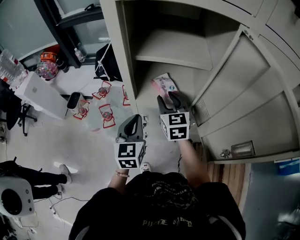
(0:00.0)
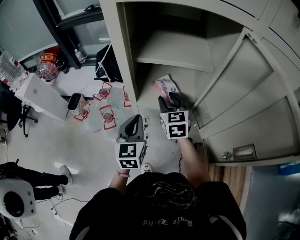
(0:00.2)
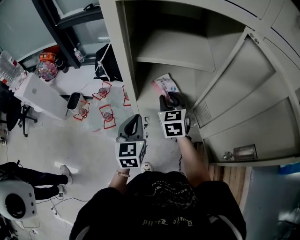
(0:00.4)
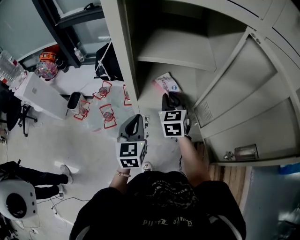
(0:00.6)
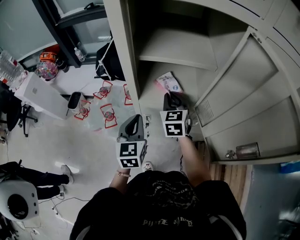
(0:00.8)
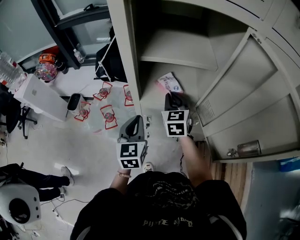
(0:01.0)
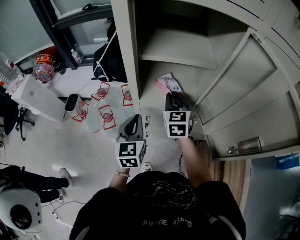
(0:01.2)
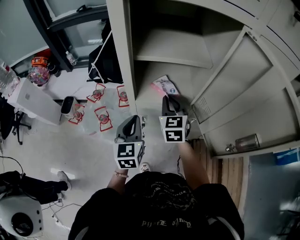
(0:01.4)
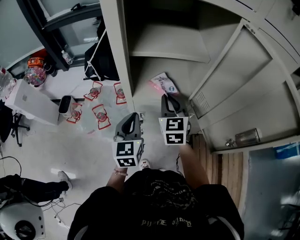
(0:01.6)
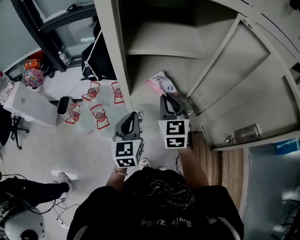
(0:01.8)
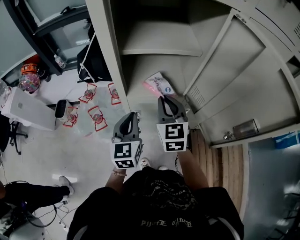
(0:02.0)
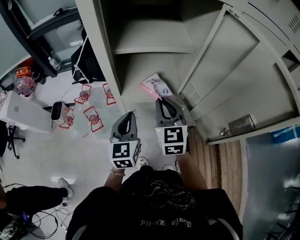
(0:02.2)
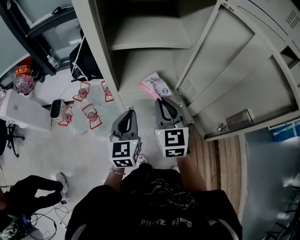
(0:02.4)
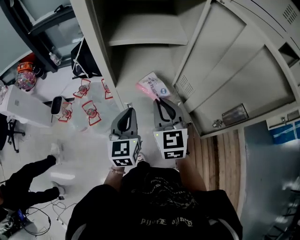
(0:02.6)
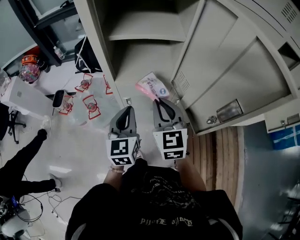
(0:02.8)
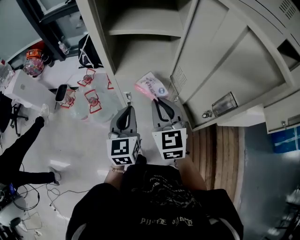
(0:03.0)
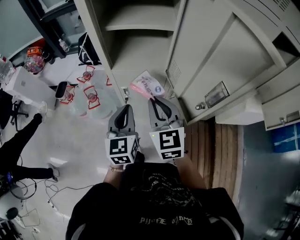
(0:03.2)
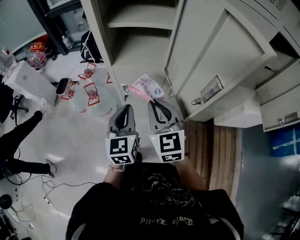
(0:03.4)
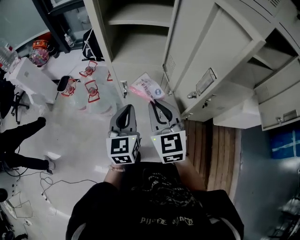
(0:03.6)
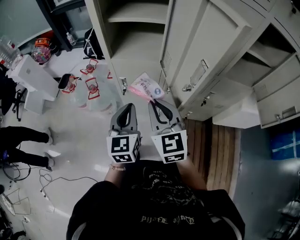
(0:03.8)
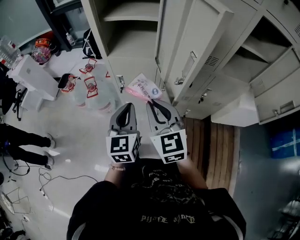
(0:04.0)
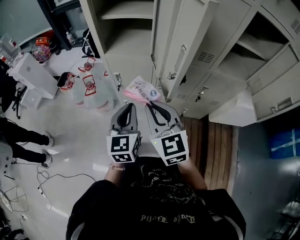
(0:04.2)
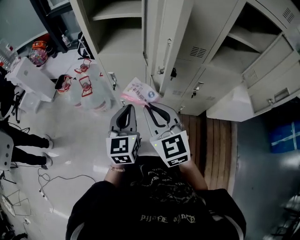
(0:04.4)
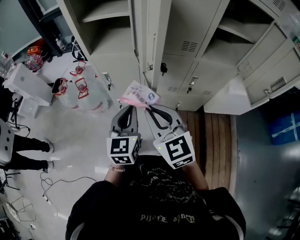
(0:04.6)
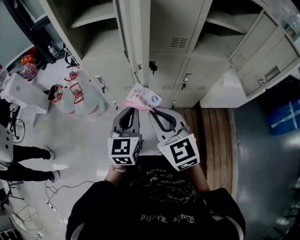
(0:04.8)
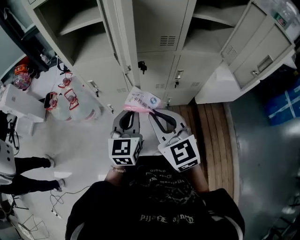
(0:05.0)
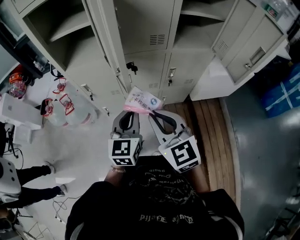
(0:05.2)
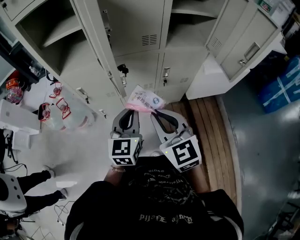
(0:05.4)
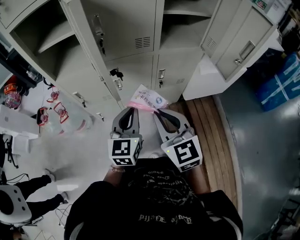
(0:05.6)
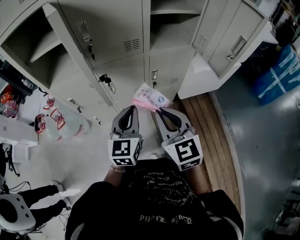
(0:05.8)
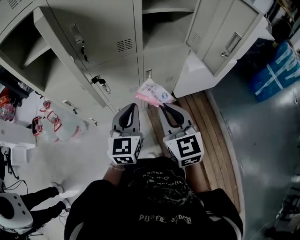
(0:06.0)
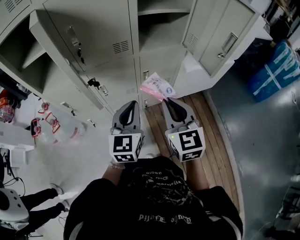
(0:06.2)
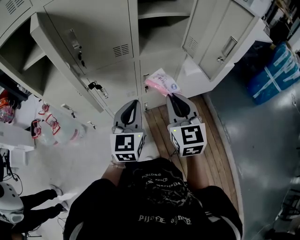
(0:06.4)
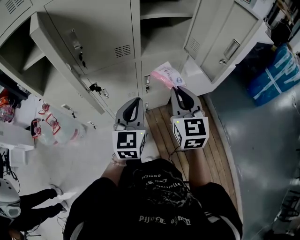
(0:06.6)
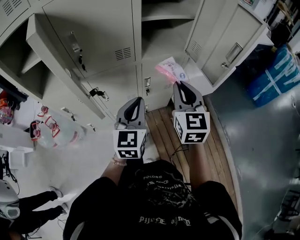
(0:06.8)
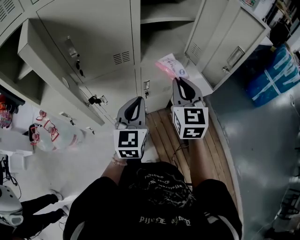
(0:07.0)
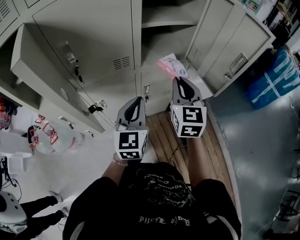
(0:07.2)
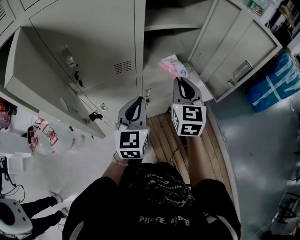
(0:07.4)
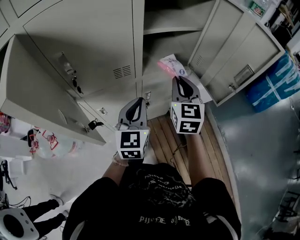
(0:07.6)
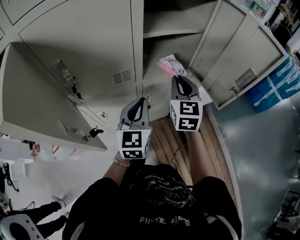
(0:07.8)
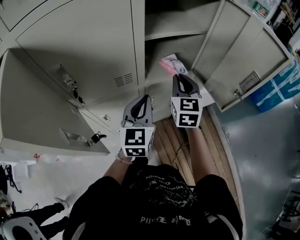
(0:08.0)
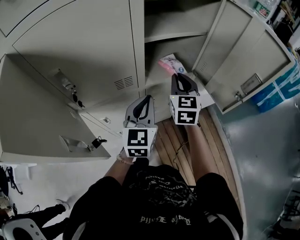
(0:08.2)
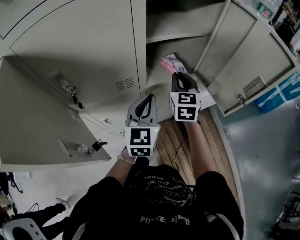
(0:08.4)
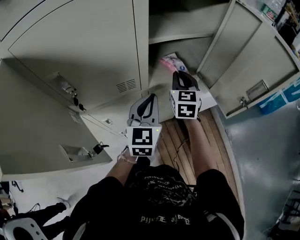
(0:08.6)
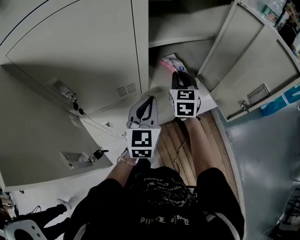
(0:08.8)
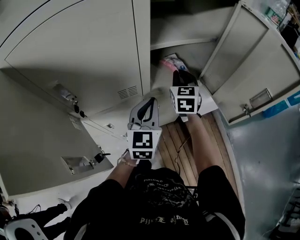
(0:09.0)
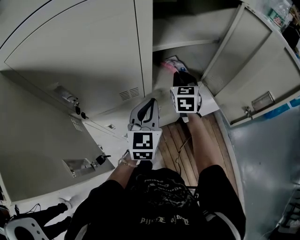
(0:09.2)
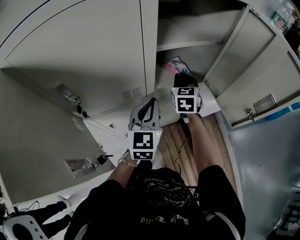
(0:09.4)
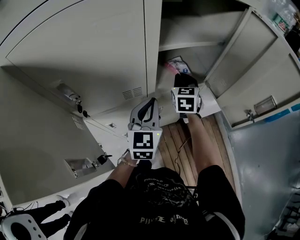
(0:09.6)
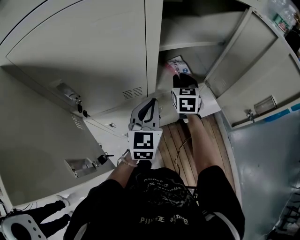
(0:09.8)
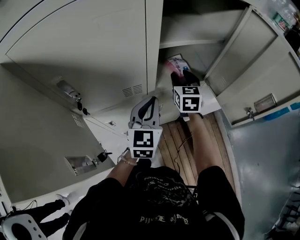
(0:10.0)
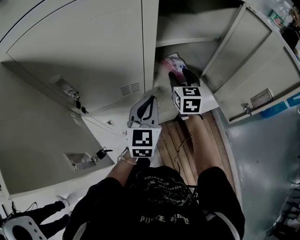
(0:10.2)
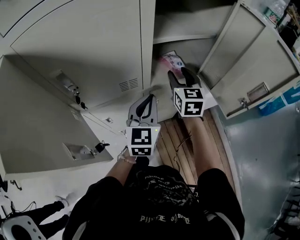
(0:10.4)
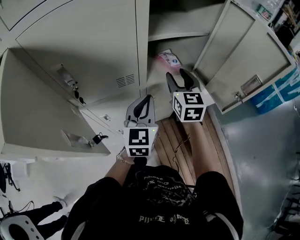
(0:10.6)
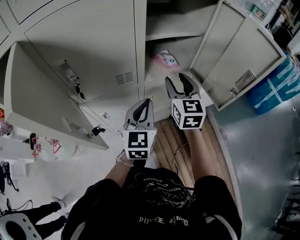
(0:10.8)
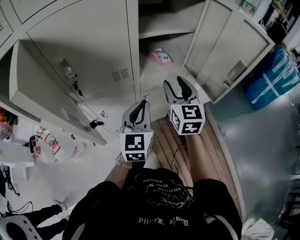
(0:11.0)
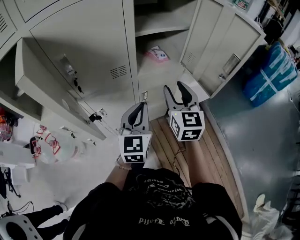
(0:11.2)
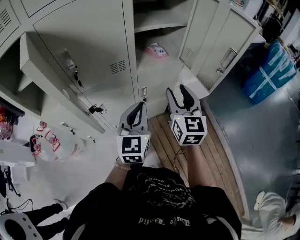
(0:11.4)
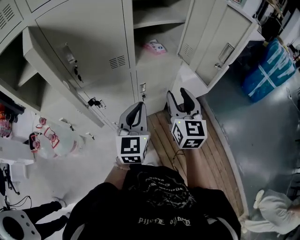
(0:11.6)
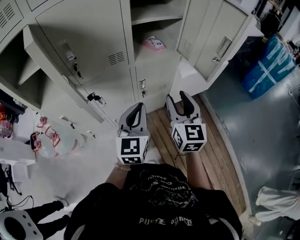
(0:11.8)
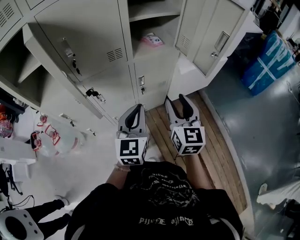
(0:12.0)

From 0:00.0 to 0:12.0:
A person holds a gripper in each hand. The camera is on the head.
From 0:00.0 to 0:01.6: The right gripper closes.
From 0:01.6 to 0:03.0: The left gripper goes about 10 cm backward and to the right; the right gripper is displaced backward by roughly 15 cm.
From 0:03.0 to 0:04.4: The left gripper travels backward and to the right by roughly 20 cm. Meanwhile the right gripper is displaced backward by some 20 cm.
From 0:04.4 to 0:06.0: The right gripper ends up about 25 cm from where it was, and turns by about 30 degrees; the left gripper moves some 20 cm, and swivels some 30 degrees.
From 0:06.0 to 0:07.6: The right gripper goes some 25 cm forward, and turns by approximately 20 degrees; the left gripper is displaced forward by roughly 15 cm.
From 0:07.6 to 0:09.0: The right gripper heads forward, covering approximately 15 cm. The left gripper shifts roughly 10 cm forward.
From 0:09.0 to 0:10.4: The right gripper shifts by roughly 5 cm, and opens its fingers.
From 0:10.4 to 0:12.0: Both grippers move backward, roughly 25 cm.

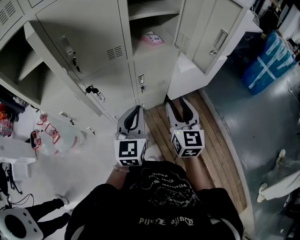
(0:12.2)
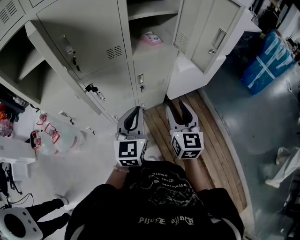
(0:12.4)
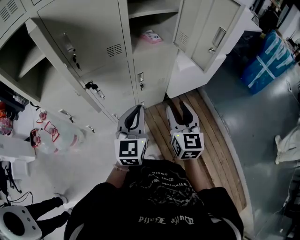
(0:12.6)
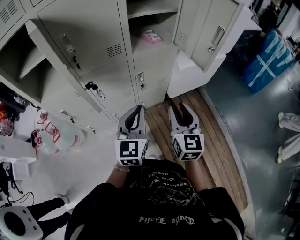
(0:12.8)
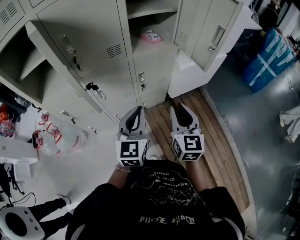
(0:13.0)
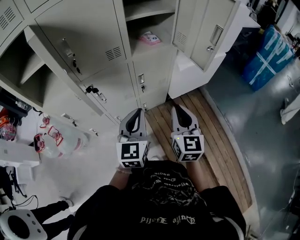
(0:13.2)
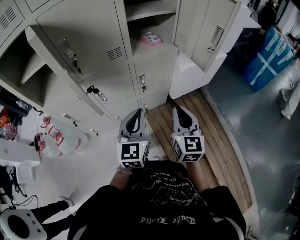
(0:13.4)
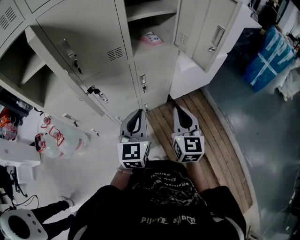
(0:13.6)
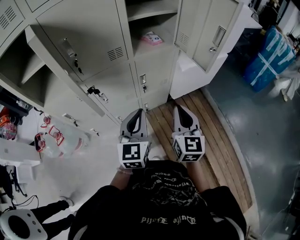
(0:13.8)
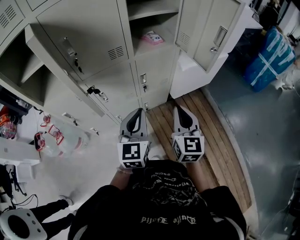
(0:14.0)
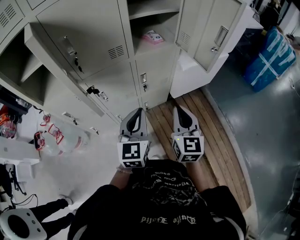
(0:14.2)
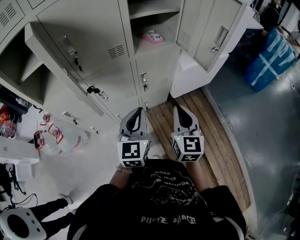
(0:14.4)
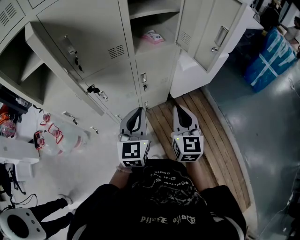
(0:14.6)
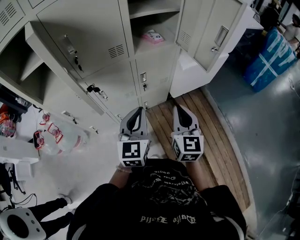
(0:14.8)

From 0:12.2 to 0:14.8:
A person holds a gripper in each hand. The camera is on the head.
From 0:12.2 to 0:13.4: The right gripper closes.
From 0:13.4 to 0:14.8: The two grippers keep their place.

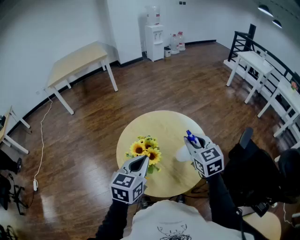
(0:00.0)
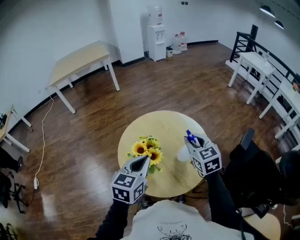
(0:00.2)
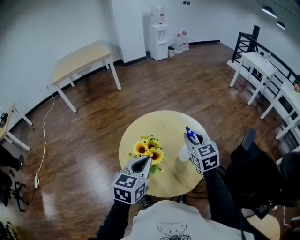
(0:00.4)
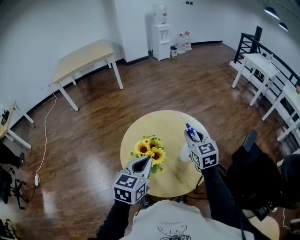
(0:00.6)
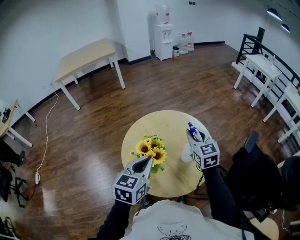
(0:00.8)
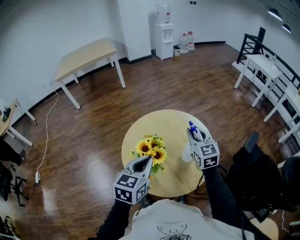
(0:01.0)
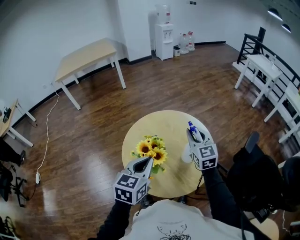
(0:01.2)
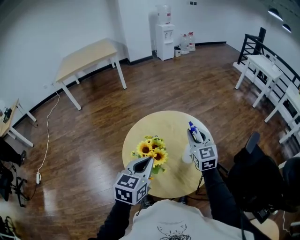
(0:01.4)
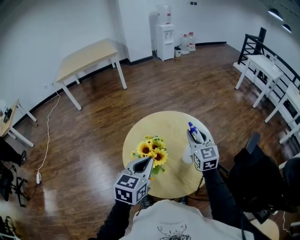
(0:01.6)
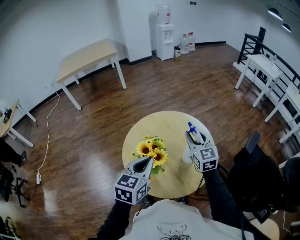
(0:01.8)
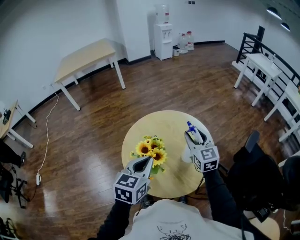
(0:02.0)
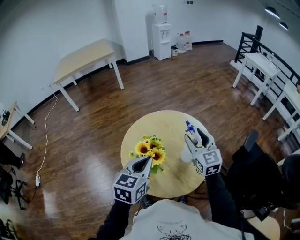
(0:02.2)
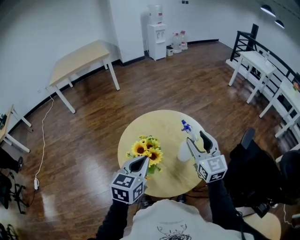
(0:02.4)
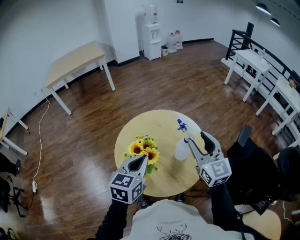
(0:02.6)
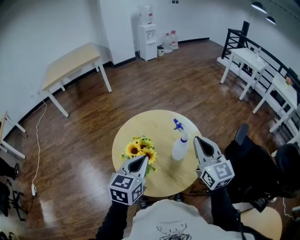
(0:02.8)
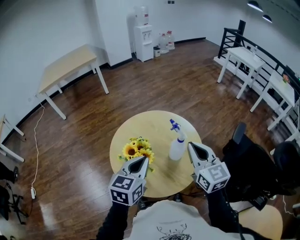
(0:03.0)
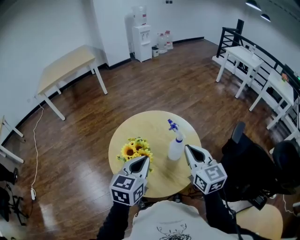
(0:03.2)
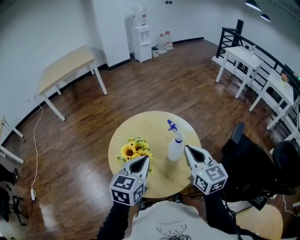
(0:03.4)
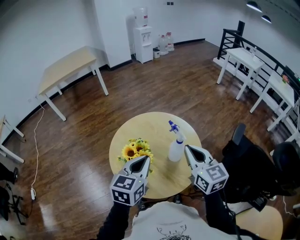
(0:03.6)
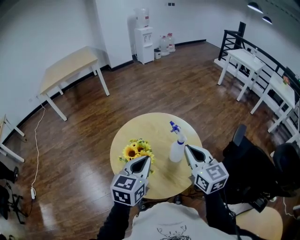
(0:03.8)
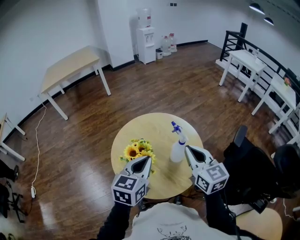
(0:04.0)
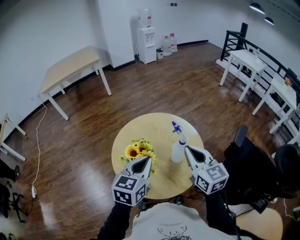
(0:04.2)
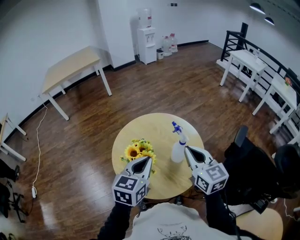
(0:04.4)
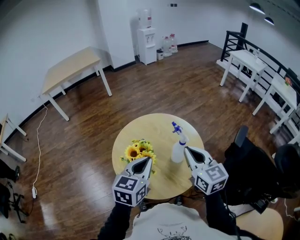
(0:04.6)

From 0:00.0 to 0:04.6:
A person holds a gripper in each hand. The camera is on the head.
From 0:00.0 to 0:01.6: The right gripper shifts about 5 cm forward.
From 0:01.6 to 0:03.0: The right gripper heads backward and upward, covering some 15 cm, and opens, then closes once more.
From 0:03.0 to 0:04.6: The grippers move only a little.

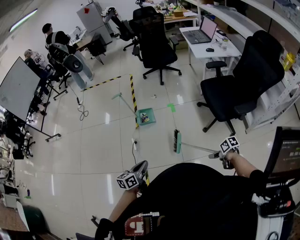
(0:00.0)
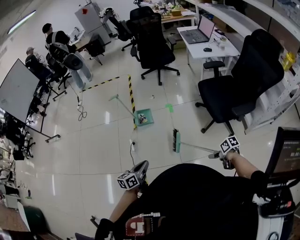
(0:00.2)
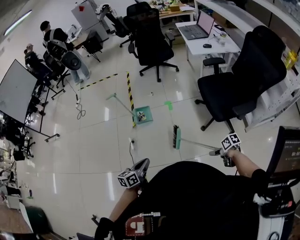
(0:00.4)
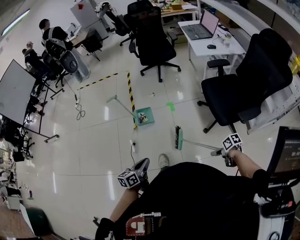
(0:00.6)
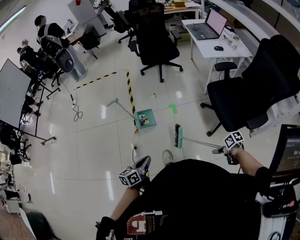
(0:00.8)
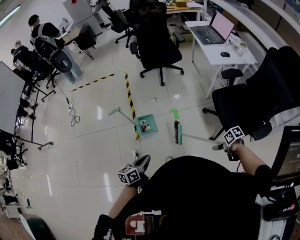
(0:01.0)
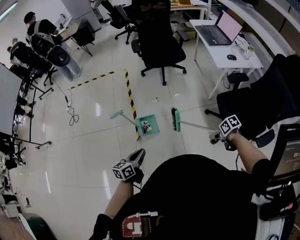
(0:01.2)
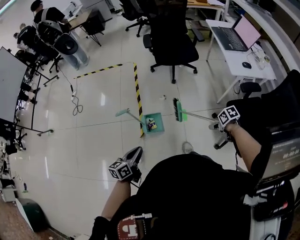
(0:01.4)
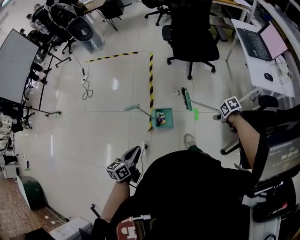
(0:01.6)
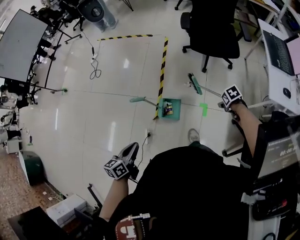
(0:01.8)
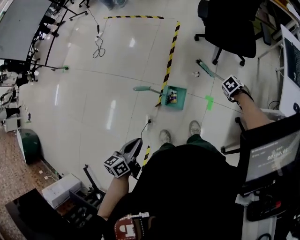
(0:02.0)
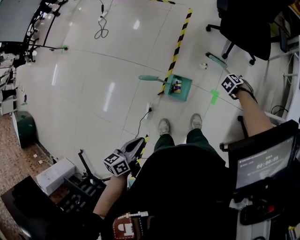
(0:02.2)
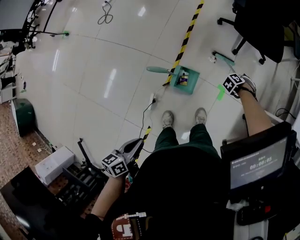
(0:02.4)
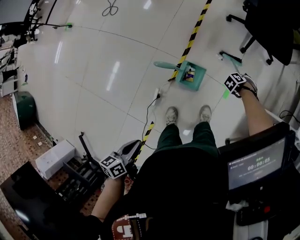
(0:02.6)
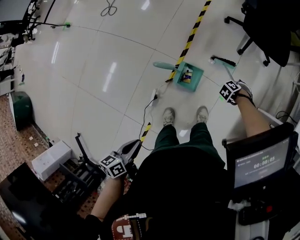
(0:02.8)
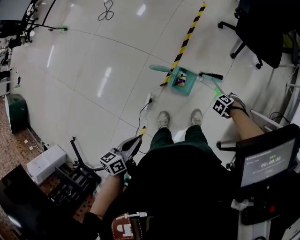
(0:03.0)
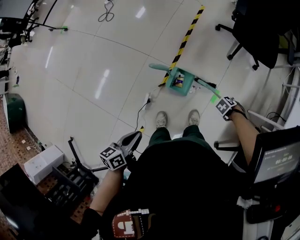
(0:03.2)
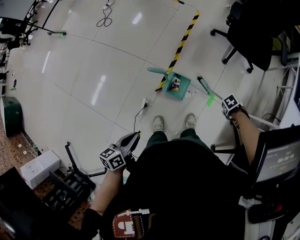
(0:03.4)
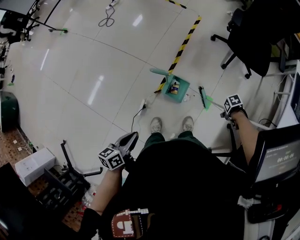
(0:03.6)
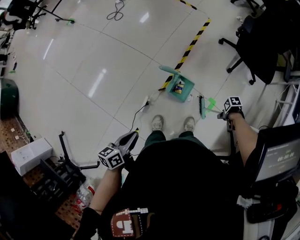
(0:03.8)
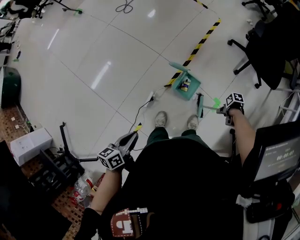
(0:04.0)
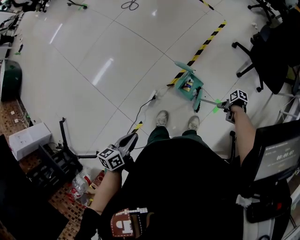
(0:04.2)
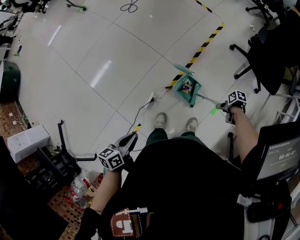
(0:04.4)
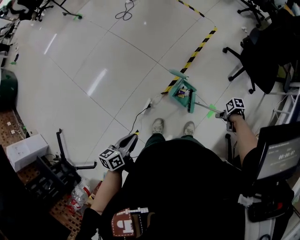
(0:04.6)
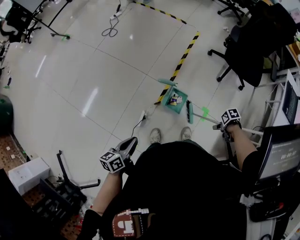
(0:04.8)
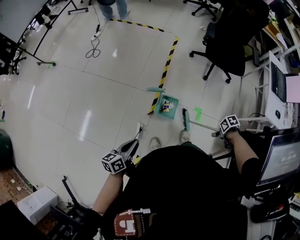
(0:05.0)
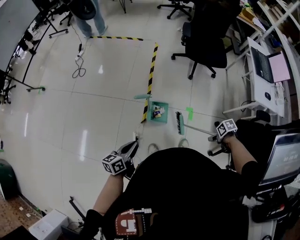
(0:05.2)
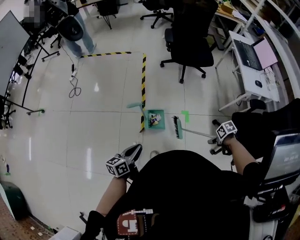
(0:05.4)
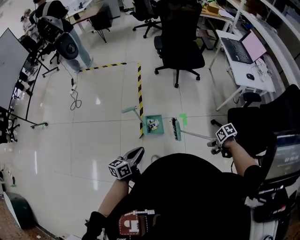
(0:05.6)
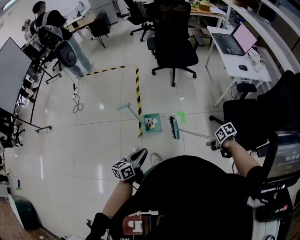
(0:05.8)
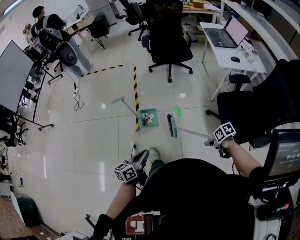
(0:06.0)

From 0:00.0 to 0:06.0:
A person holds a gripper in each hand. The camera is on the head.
From 0:00.0 to 0:01.6: The left gripper moves some 50 cm.
From 0:01.6 to 0:03.0: The left gripper heads downward, covering roughly 10 cm, and turns by about 20 degrees.
From 0:03.0 to 0:04.4: The left gripper moves roughly 10 cm.
From 0:04.4 to 0:06.0: The left gripper shifts by roughly 30 cm, and rotates roughly 50 degrees.
